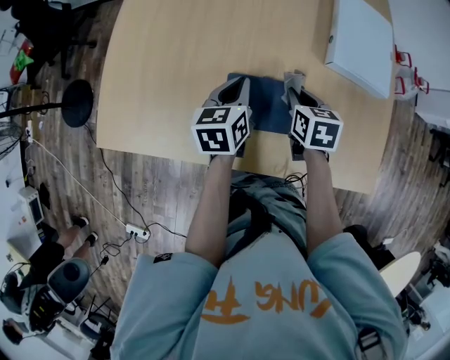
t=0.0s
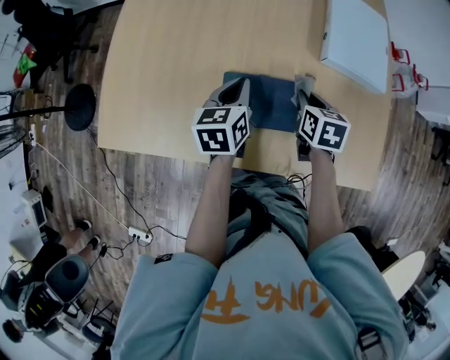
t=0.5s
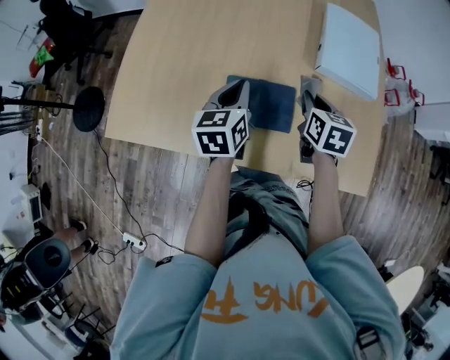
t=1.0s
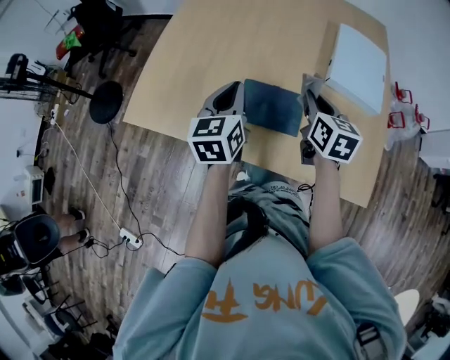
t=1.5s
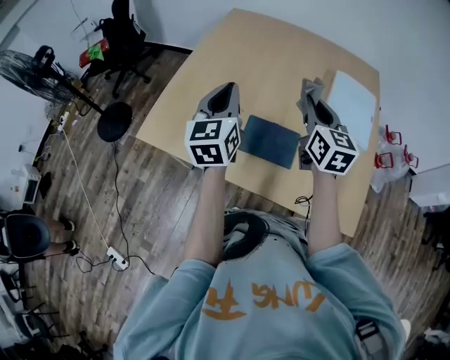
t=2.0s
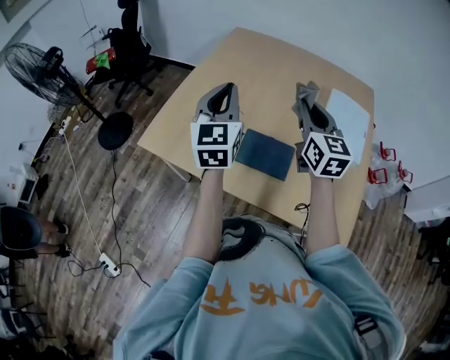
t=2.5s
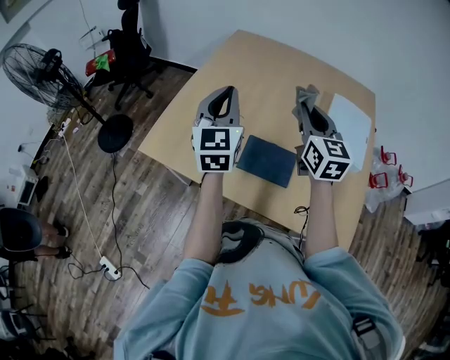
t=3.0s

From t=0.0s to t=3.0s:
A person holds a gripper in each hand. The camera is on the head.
From t=0.0s to t=1.5s: The left gripper travels upward and backward by roughly 15 cm, and turns by roughly 20 degrees, while the right gripper heads upward, covering about 15 cm, and turns by roughly 20 degrees.
From t=1.5s to t=3.0s: Both grippers travel together upward, approximately 15 cm. The right gripper rotates about 30 degrees; the left gripper rotates some 30 degrees.

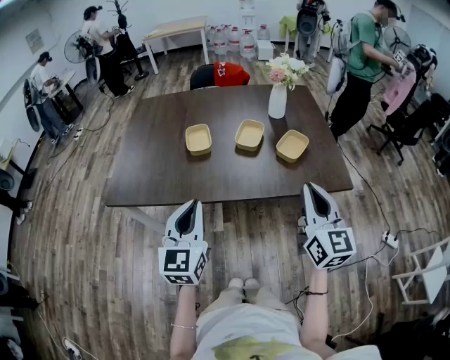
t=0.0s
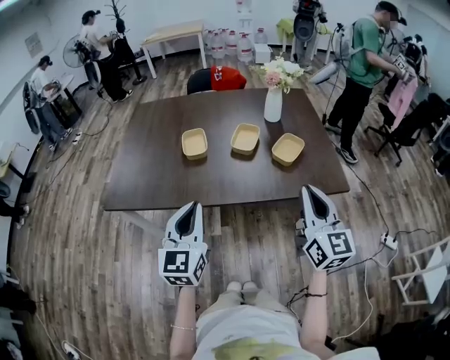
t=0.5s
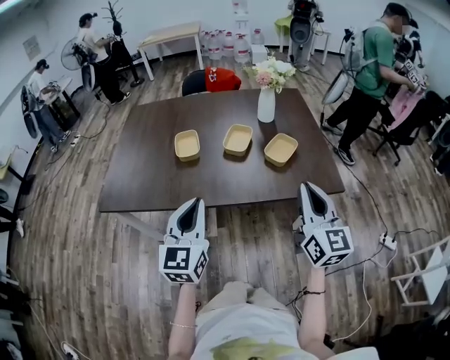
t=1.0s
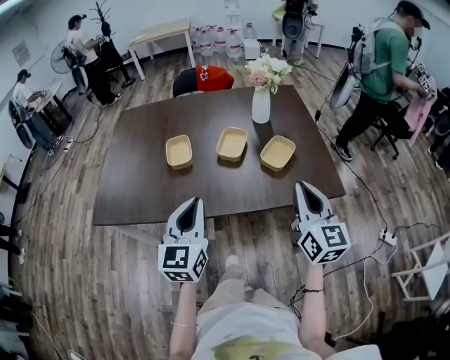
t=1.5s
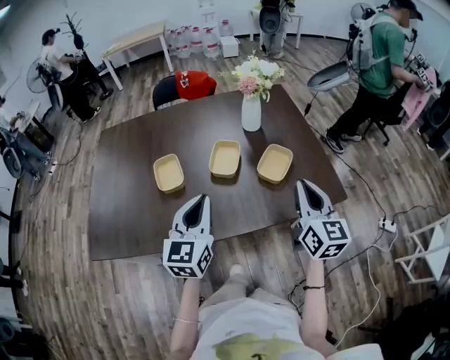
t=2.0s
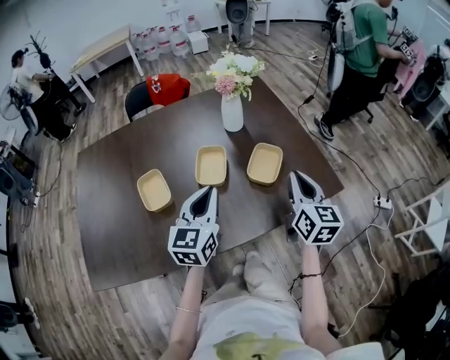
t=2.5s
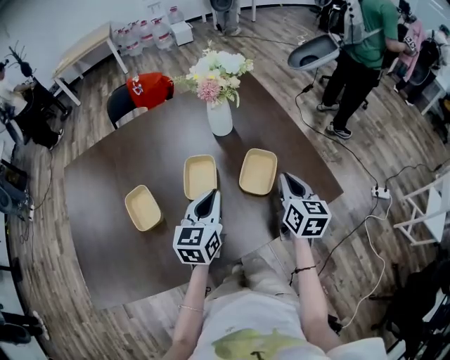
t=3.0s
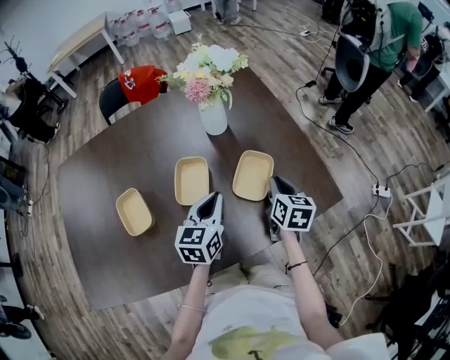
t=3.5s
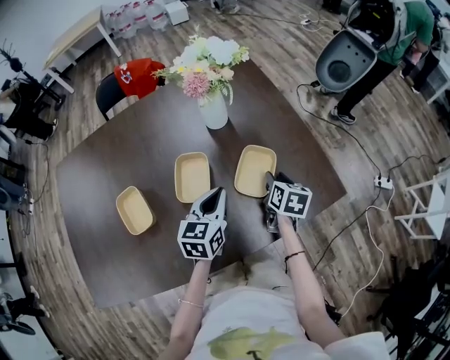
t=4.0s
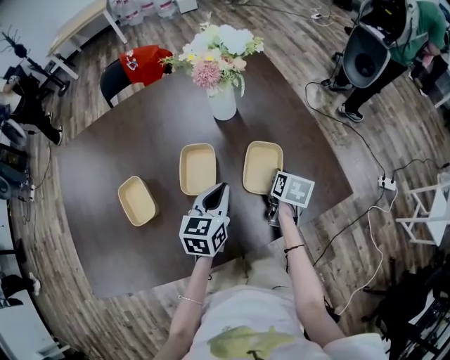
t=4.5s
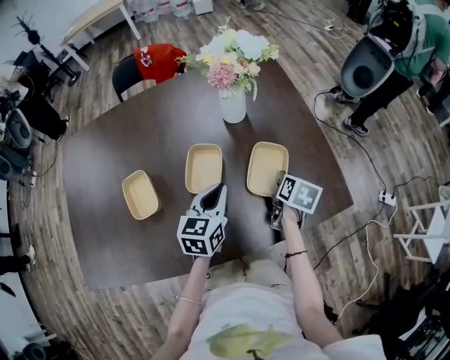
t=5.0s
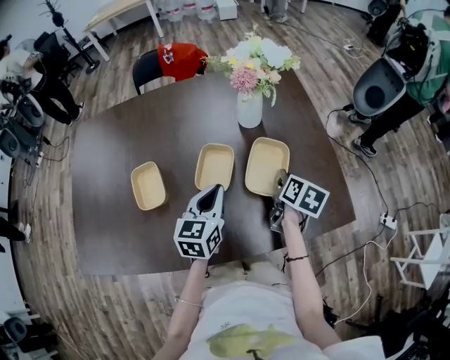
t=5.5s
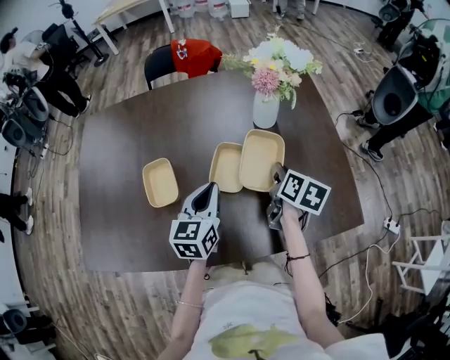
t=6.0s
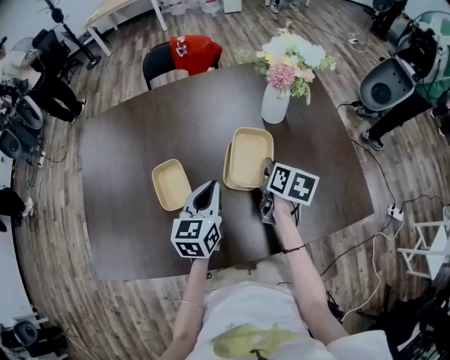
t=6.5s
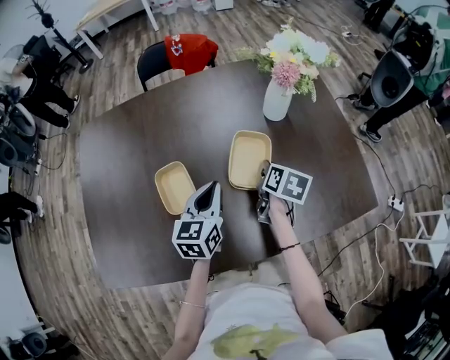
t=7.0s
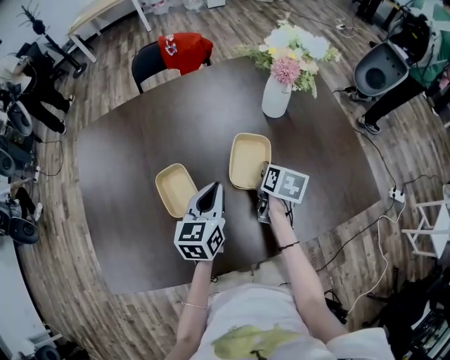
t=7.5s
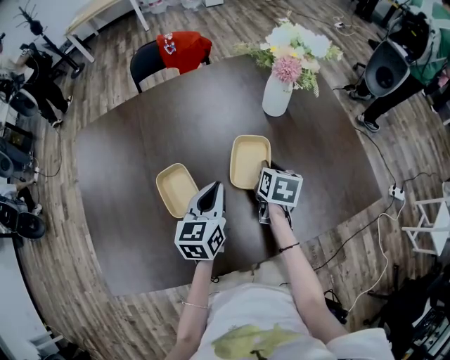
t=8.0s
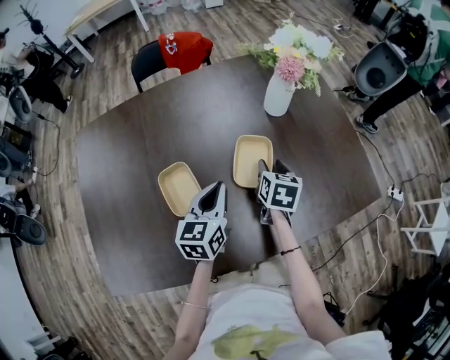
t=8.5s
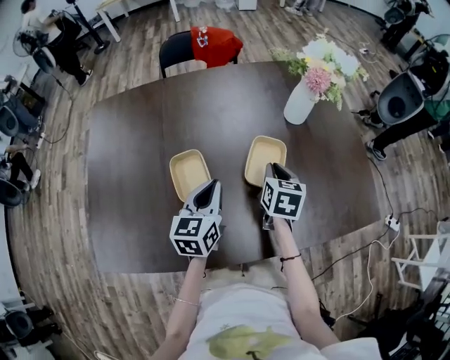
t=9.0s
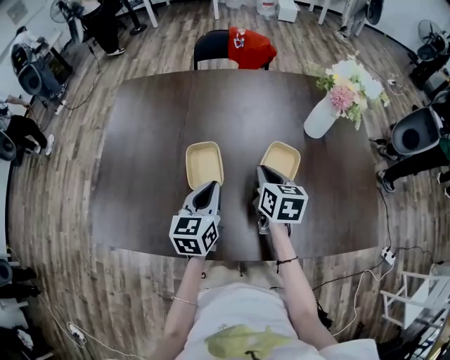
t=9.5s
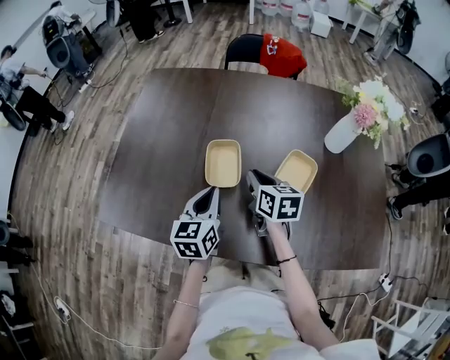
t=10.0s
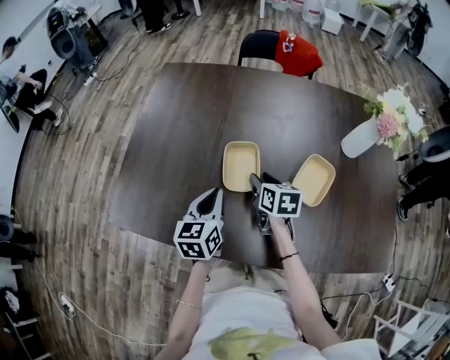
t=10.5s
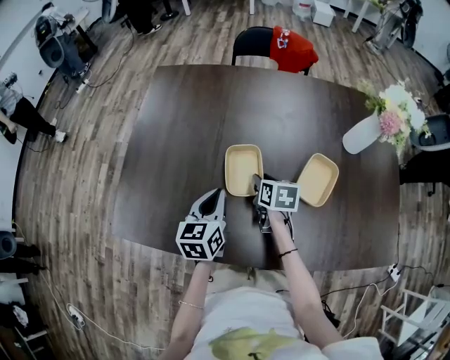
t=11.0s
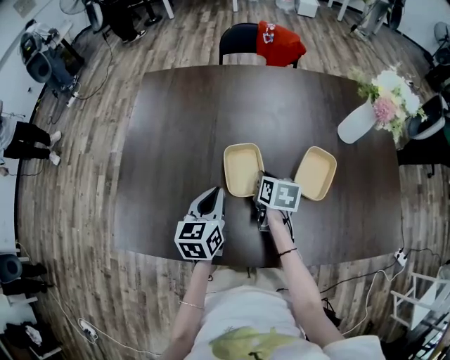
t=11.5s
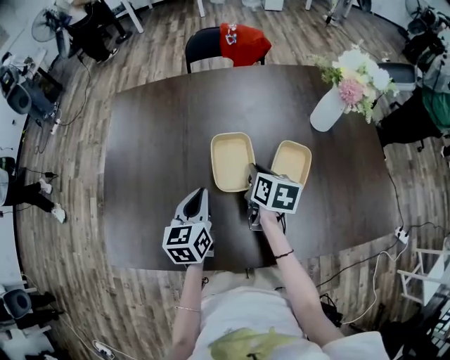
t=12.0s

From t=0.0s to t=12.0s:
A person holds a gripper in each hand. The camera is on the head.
From t=0.0s to t=2.0s: The right gripper shifts roughly 15 cm forward. Meanwhile the left gripper moves forward and to the right, about 20 cm.
From t=2.0s to t=4.0s: The left gripper moves forward and downward, approximately 25 cm, and swivels some 30 degrees, while the right gripper heads downward and forward, covering about 30 cm, points its fingers roughly 40 degrees further downward, and opens up.
From t=4.0s to t=6.0s: The right gripper heads to the left and upward, covering some 15 cm, and closes. The left gripper heads to the left, covering some 10 cm.
From t=6.0s to t=8.0s: The right gripper goes approximately 10 cm to the left and downward. Meanwhile the left gripper moves to the left, some 5 cm.
From t=8.0s to t=10.0s: The left gripper moves roughly 15 cm, and turns by approximately 30 degrees, while the right gripper shifts by some 20 cm, turns by approximately 50 degrees, and opens and closes again.
From t=10.0s to t=12.0s: The right gripper travels downward and back again, some 10 cm each way, swivels some 30 degrees, and opens and closes again; the left gripper shifts about 5 cm forward.

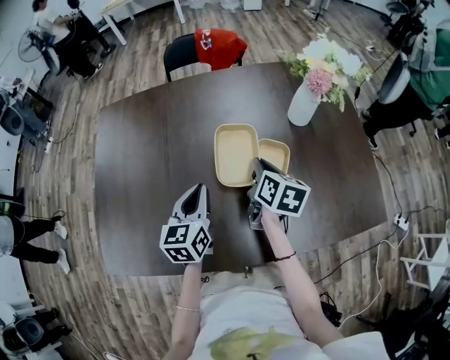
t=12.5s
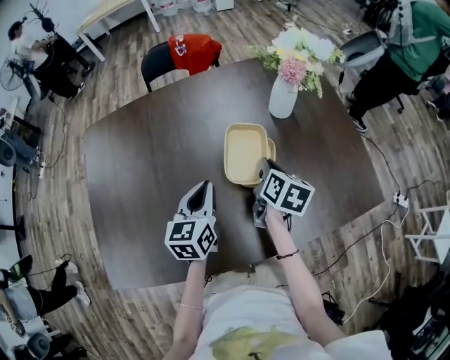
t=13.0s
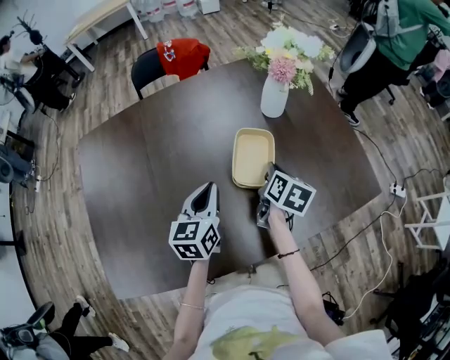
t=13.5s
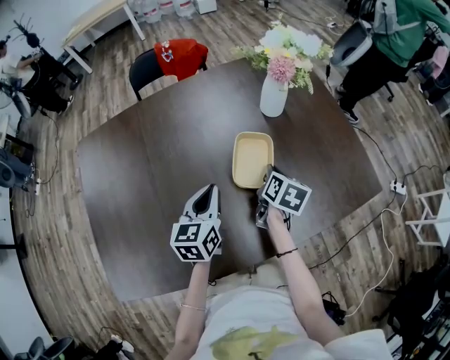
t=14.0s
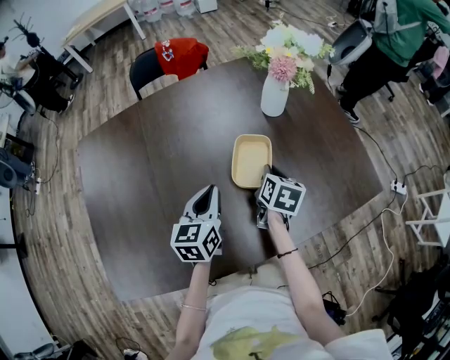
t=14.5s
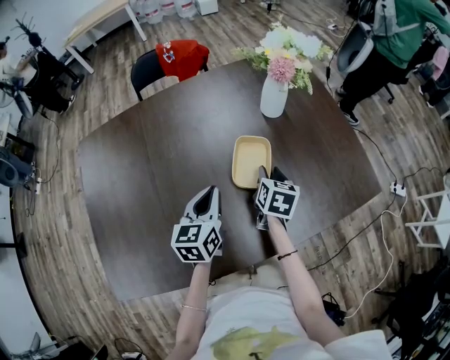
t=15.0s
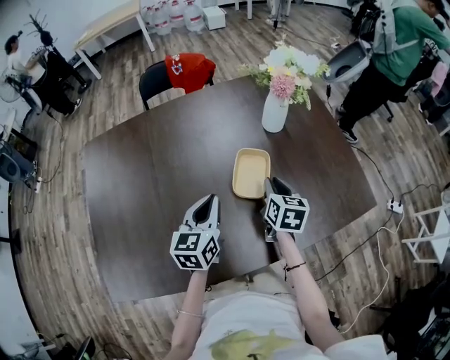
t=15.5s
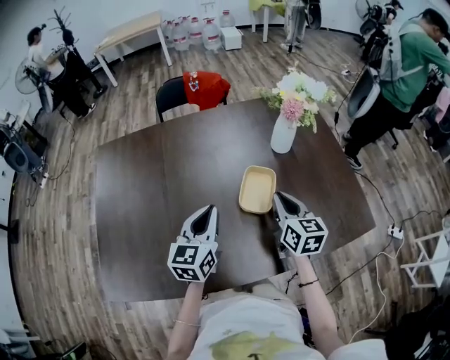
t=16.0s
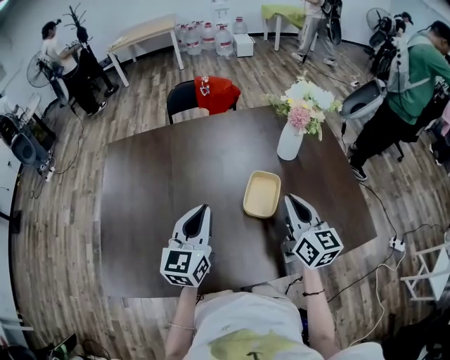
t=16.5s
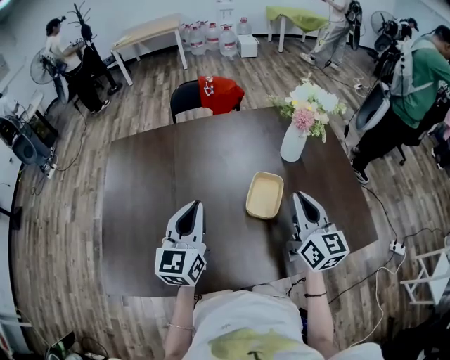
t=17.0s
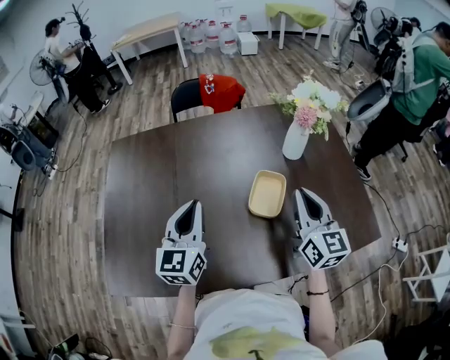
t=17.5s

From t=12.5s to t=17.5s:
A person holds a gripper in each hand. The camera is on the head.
From t=12.5s to t=15.0s: The right gripper moves to the right and downward, about 10 cm, turns by some 20 degrees, and opens. Meanwhile the left gripper heads to the right, covering roughly 5 cm.
From t=15.0s to t=17.5s: The left gripper shifts some 15 cm upward and to the left, and rotates roughly 30 degrees, while the right gripper is displaced upward by roughly 20 cm, tilts its fingers some 40 degrees upward, and closes up.

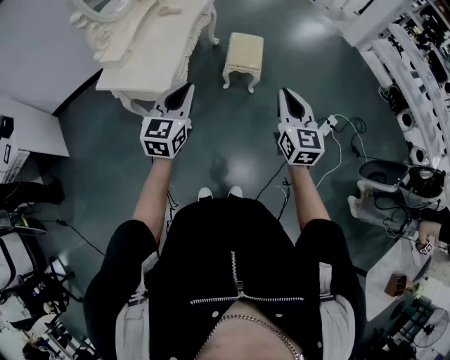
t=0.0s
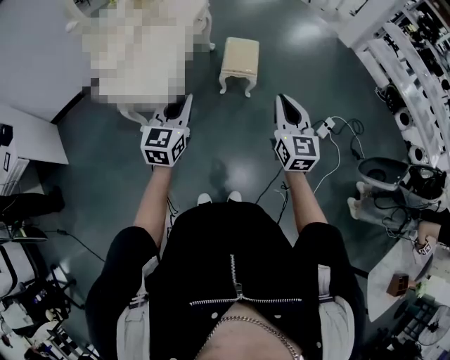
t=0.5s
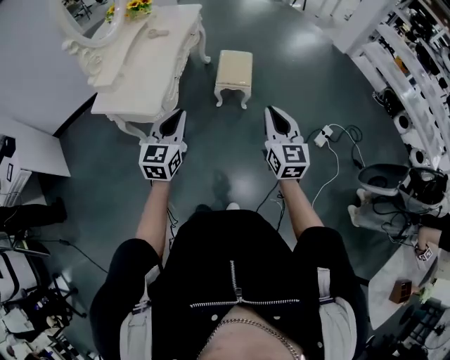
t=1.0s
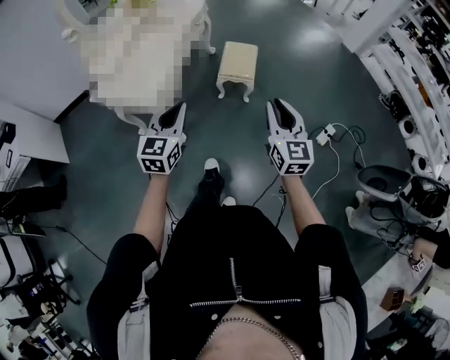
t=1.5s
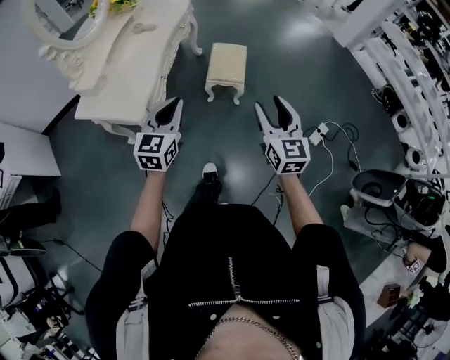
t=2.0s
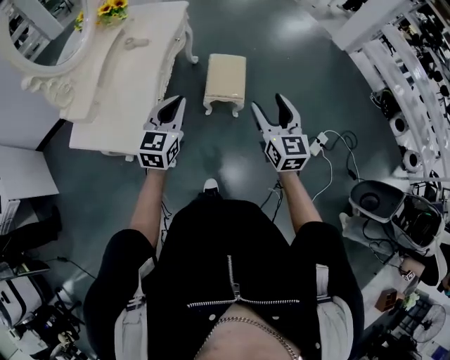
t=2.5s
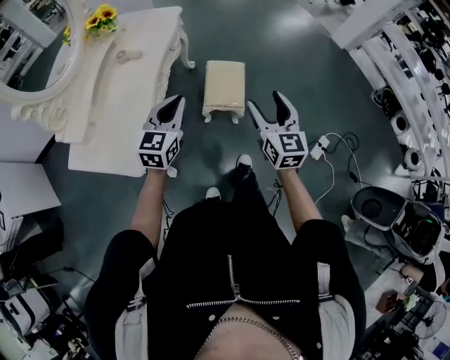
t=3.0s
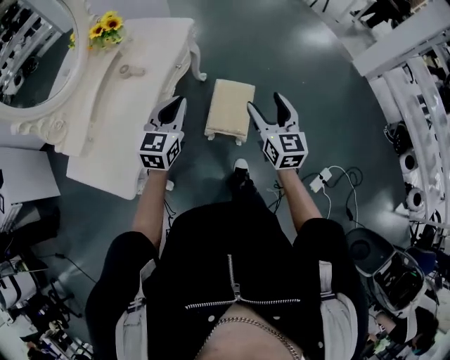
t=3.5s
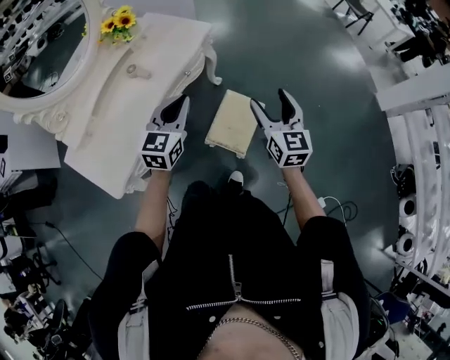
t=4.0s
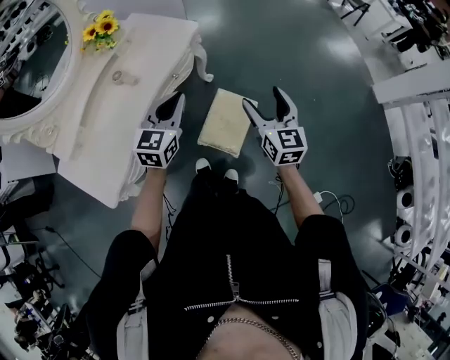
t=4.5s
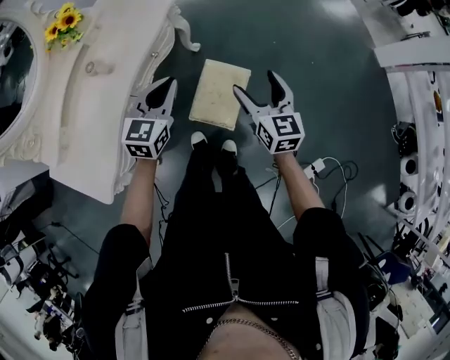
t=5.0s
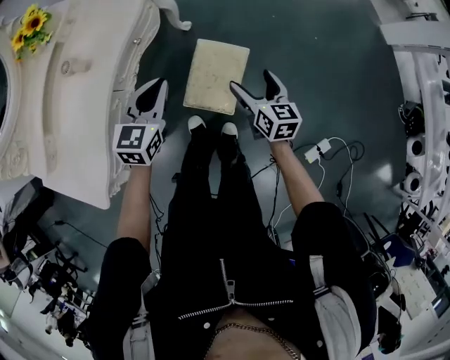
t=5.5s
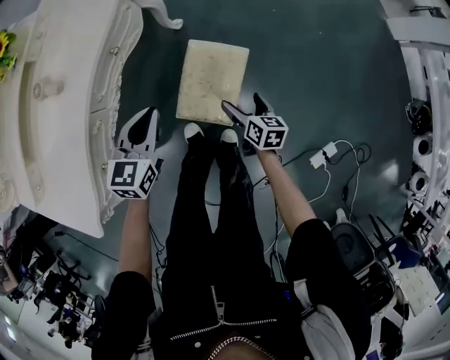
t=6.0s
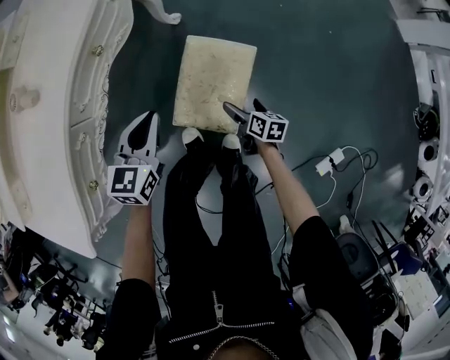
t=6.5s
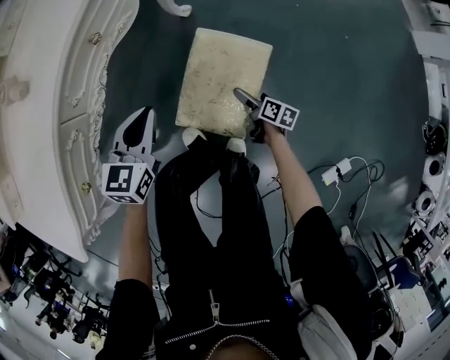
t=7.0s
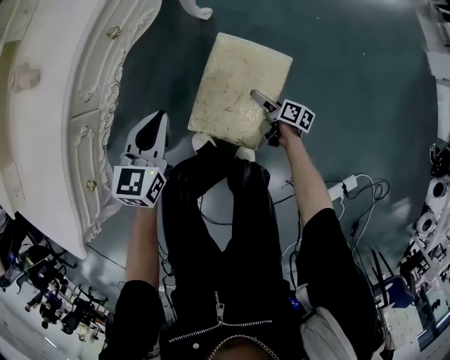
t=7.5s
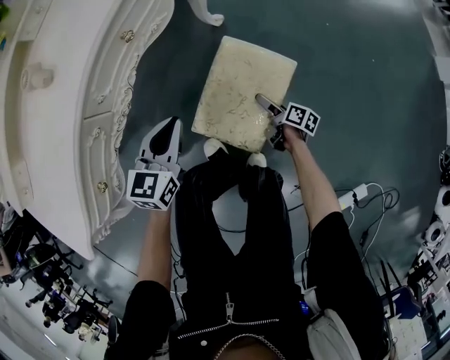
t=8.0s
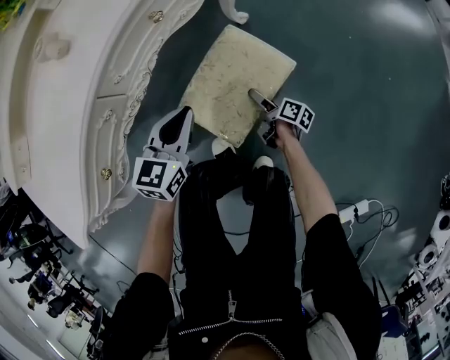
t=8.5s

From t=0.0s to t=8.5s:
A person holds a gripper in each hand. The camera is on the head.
From t=0.0s to t=2.0s: The left gripper heads forward and to the right, covering roughly 10 cm. The right gripper heads forward, covering some 10 cm.
From t=2.0s to t=4.0s: The two grippers travel together, forward, some 50 cm.
From t=4.0s to t=6.5s: The right gripper goes some 60 cm downward, rotates around the line of its fingers by roughly 50 degrees, clockwise from behind, and opens up; the left gripper heads downward, covering roughly 35 cm, and swivels approximately 20 degrees.
From t=6.5s to t=8.5s: The left gripper is displaced downward and to the left by roughly 10 cm. Meanwhile the right gripper heads downward, to the left and forward, covering about 20 cm, and rotates approximately 30 degrees.
